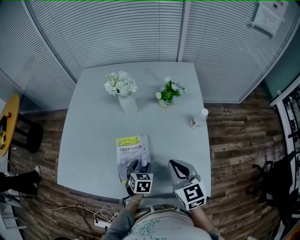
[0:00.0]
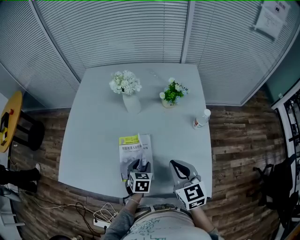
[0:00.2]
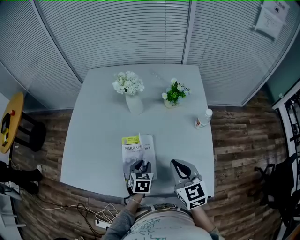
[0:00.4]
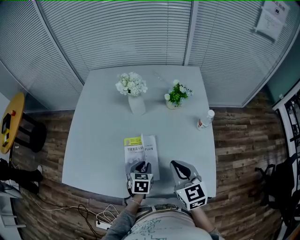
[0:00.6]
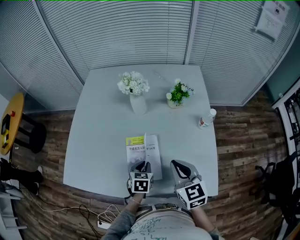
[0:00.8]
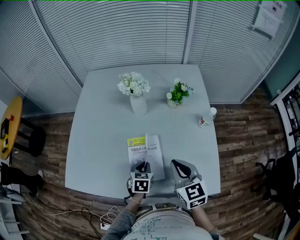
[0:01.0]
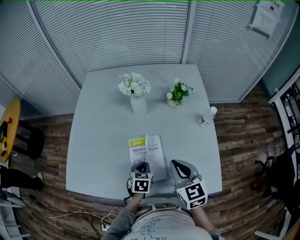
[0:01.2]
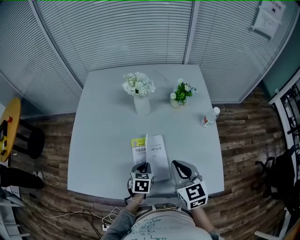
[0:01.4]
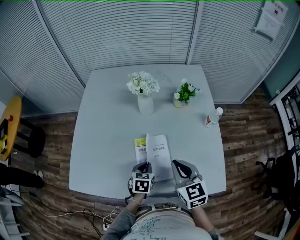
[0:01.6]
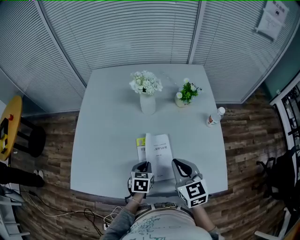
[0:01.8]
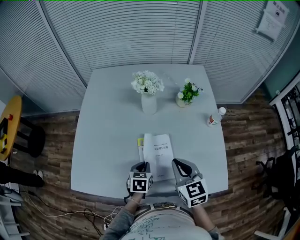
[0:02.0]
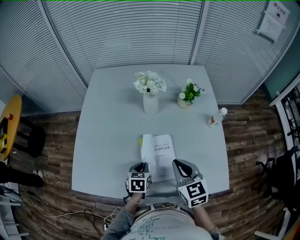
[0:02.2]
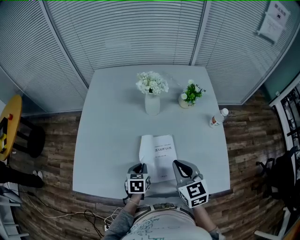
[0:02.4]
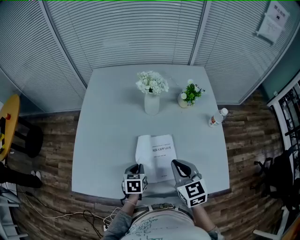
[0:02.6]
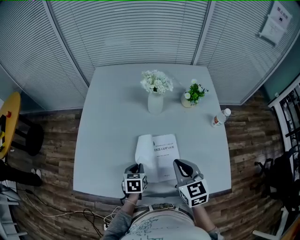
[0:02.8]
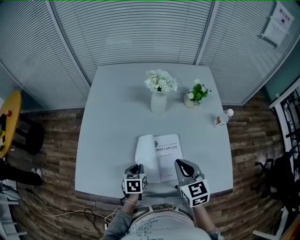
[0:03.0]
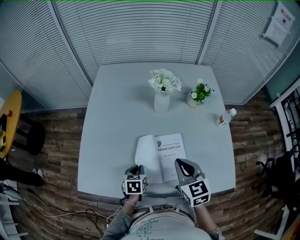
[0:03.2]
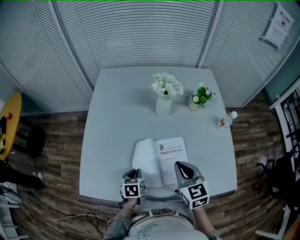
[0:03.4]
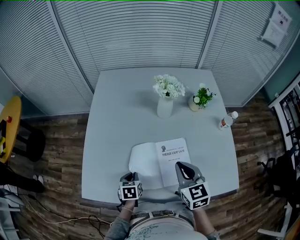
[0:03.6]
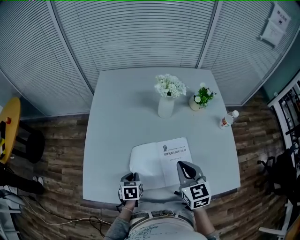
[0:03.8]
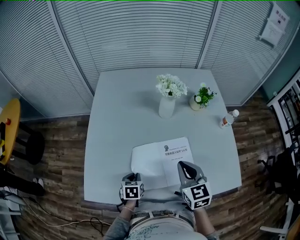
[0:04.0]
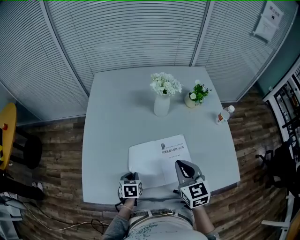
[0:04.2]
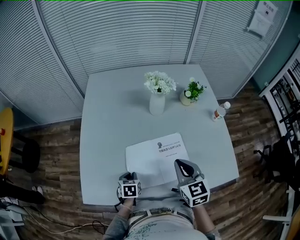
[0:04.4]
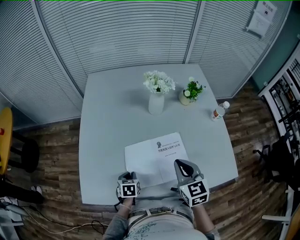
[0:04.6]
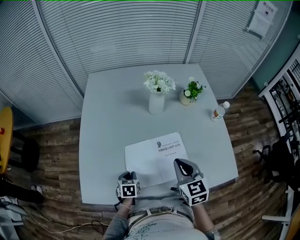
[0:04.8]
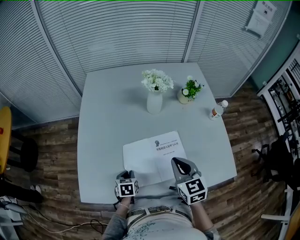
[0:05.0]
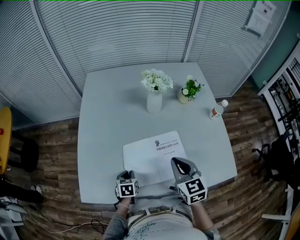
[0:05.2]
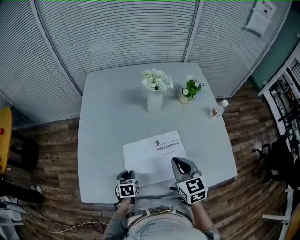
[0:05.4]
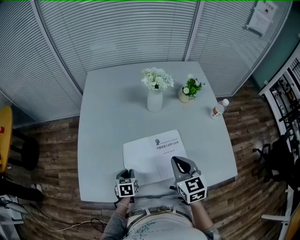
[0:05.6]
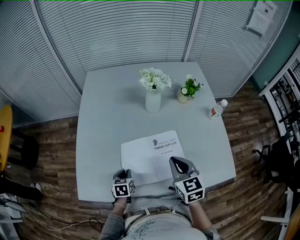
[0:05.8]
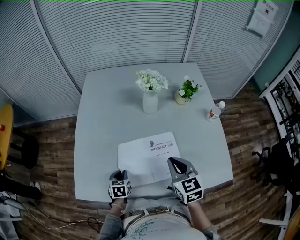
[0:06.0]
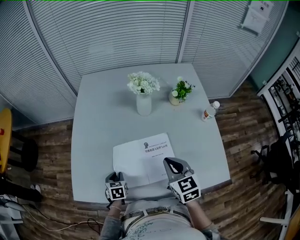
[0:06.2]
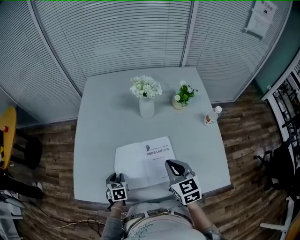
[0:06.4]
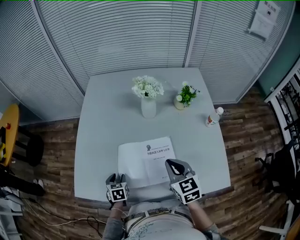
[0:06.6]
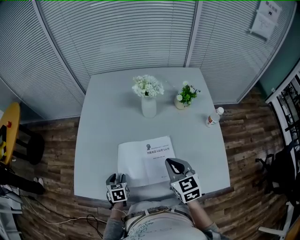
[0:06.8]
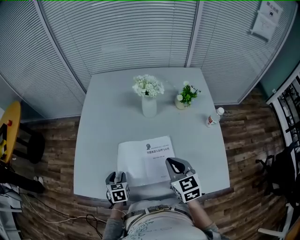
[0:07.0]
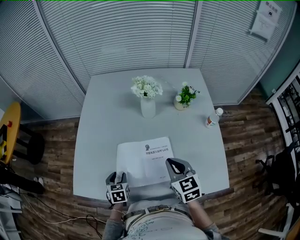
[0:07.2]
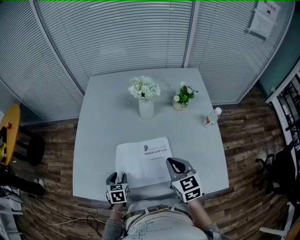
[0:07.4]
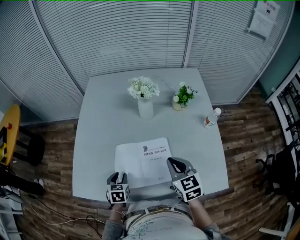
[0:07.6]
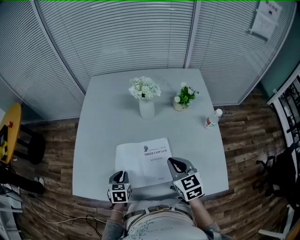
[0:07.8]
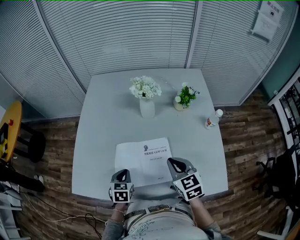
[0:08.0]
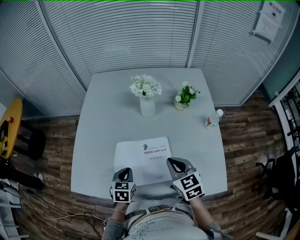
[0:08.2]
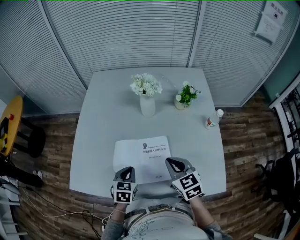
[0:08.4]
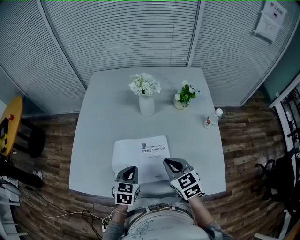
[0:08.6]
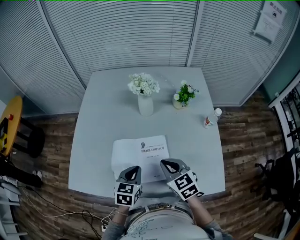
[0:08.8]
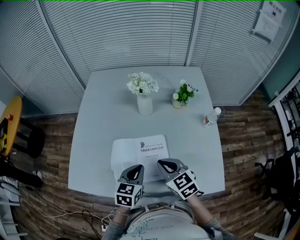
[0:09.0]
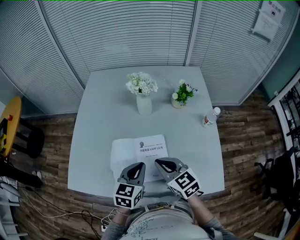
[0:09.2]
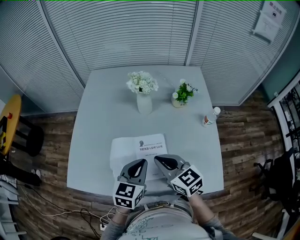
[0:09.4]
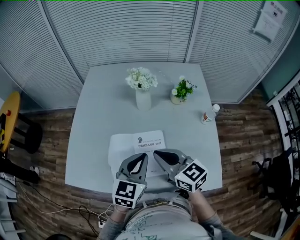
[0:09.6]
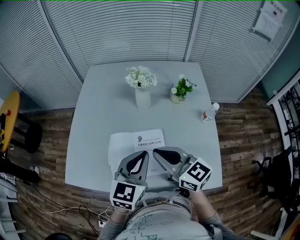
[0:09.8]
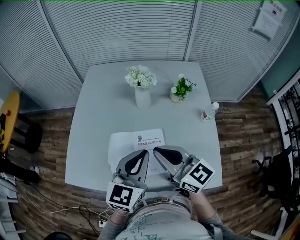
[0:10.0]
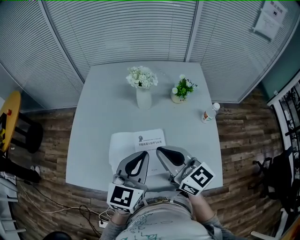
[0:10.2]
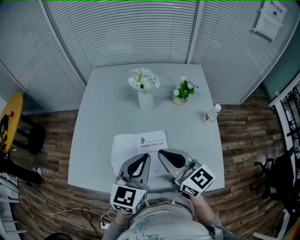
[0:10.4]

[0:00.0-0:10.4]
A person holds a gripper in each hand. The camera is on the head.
0:00.0 to 0:01.4: The two grippers go about 10 cm to the left. The left gripper closes up.
0:01.4 to 0:03.0: The left gripper goes about 15 cm to the left. Meanwhile the right gripper goes approximately 10 cm to the left.
0:03.0 to 0:04.4: The left gripper is displaced to the left and downward by approximately 10 cm.
0:04.4 to 0:06.0: The grippers make only small movements.
0:06.0 to 0:07.4: The left gripper travels upward by about 5 cm, and opens up. Meanwhile the right gripper goes approximately 5 cm to the right.
0:07.4 to 0:09.0: The left gripper goes some 20 cm to the right and upward, changes its angle by approximately 20 degrees, and closes.
0:09.0 to 0:10.4: The grippers both shift upward by some 15 cm. The right gripper points its fingers roughly 30 degrees further upward, while the left gripper rotates about 20 degrees.

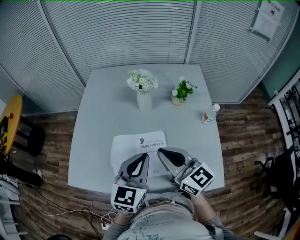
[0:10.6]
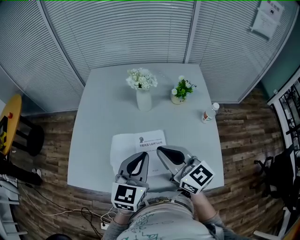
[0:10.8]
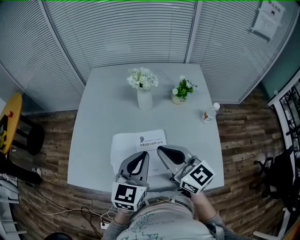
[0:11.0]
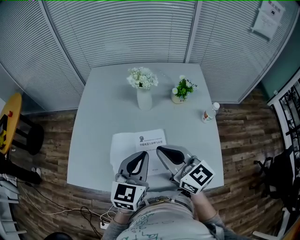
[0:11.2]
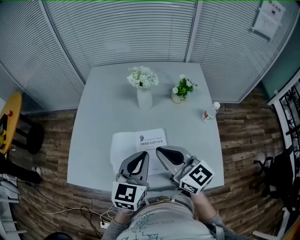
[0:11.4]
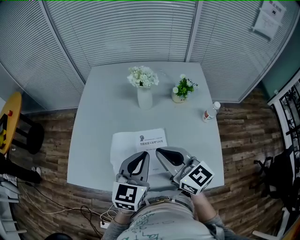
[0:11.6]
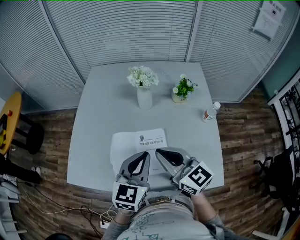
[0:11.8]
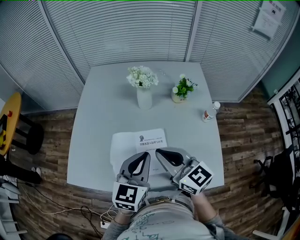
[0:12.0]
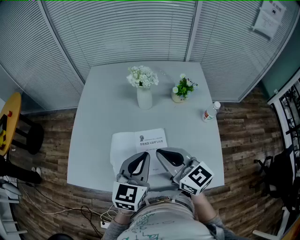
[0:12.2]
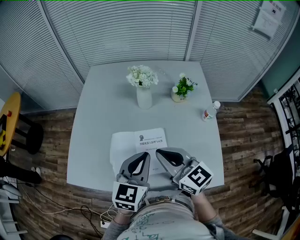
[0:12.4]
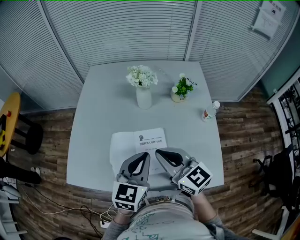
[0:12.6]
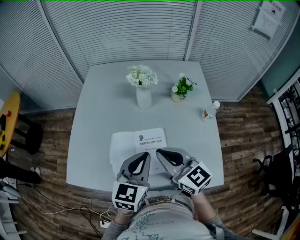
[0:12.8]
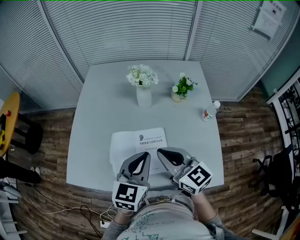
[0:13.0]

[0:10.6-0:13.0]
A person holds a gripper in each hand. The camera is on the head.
0:10.6 to 0:13.0: There are only small adjustments of the grippers.

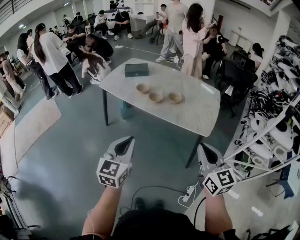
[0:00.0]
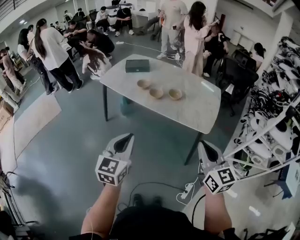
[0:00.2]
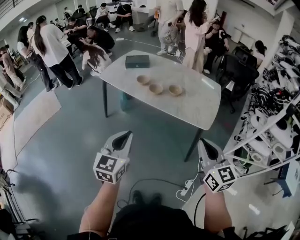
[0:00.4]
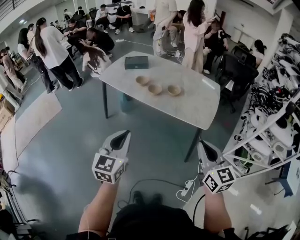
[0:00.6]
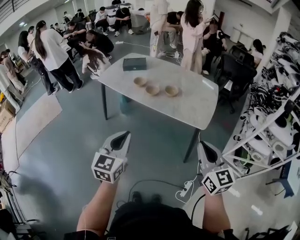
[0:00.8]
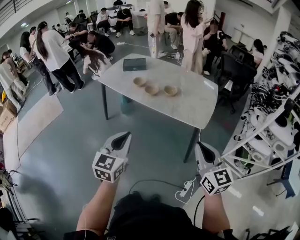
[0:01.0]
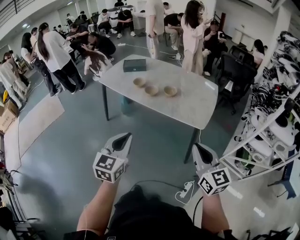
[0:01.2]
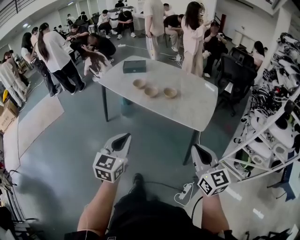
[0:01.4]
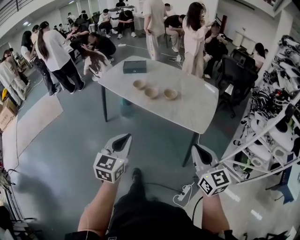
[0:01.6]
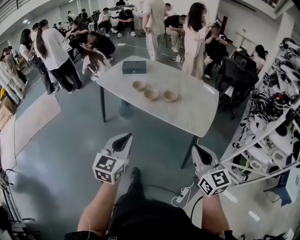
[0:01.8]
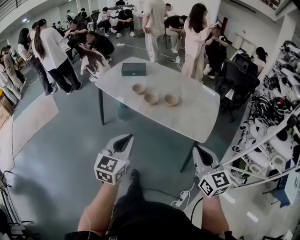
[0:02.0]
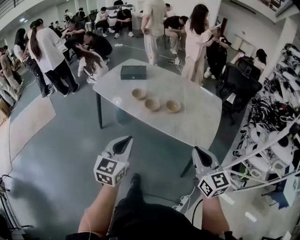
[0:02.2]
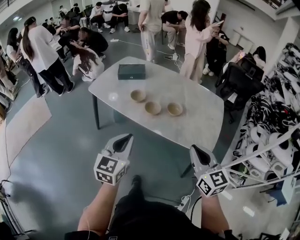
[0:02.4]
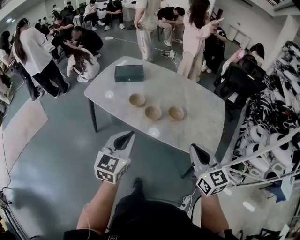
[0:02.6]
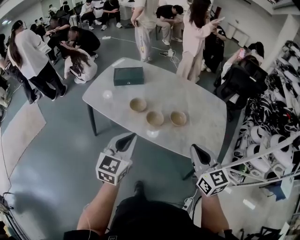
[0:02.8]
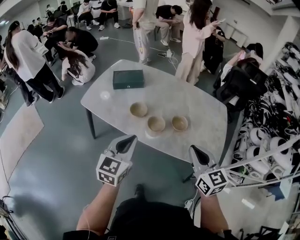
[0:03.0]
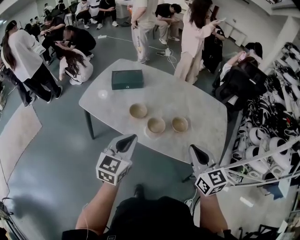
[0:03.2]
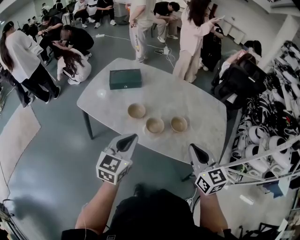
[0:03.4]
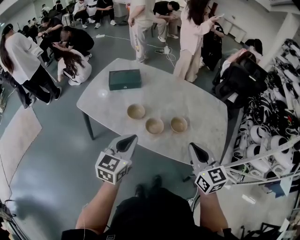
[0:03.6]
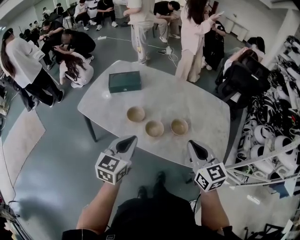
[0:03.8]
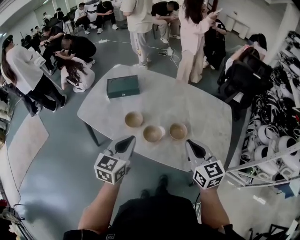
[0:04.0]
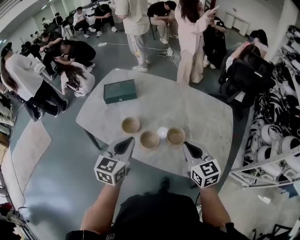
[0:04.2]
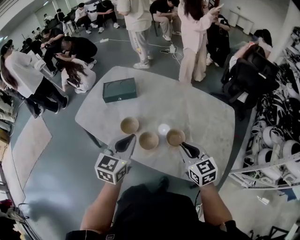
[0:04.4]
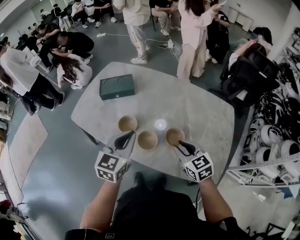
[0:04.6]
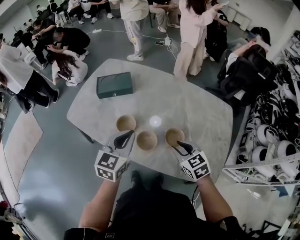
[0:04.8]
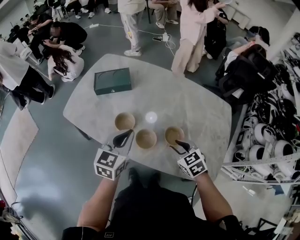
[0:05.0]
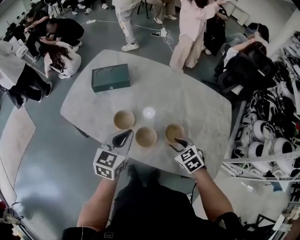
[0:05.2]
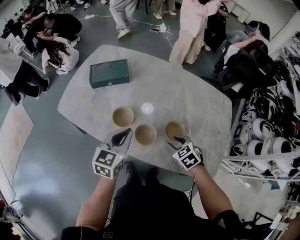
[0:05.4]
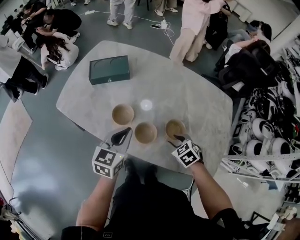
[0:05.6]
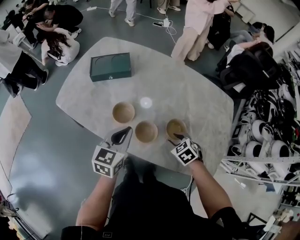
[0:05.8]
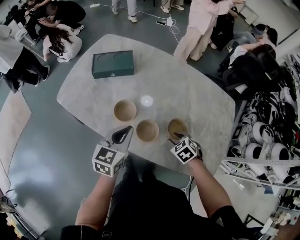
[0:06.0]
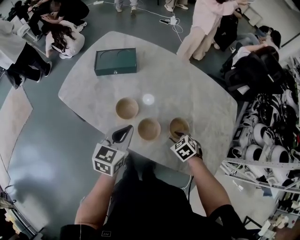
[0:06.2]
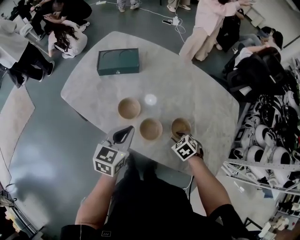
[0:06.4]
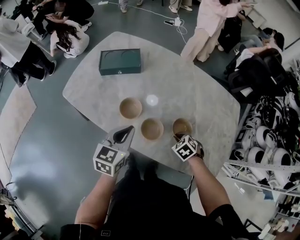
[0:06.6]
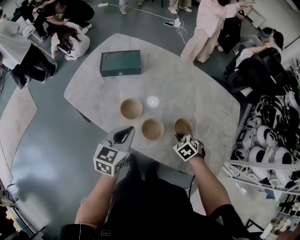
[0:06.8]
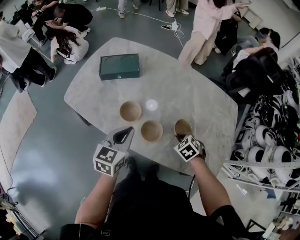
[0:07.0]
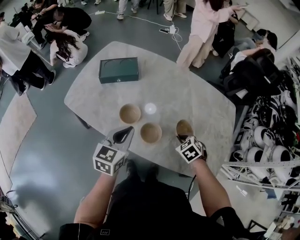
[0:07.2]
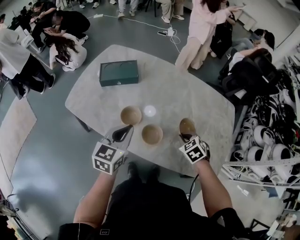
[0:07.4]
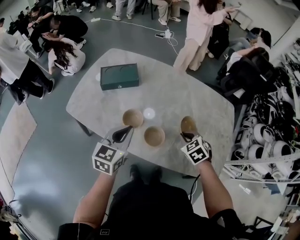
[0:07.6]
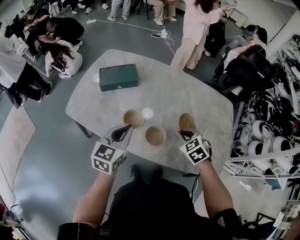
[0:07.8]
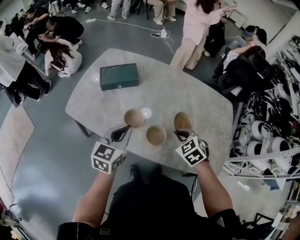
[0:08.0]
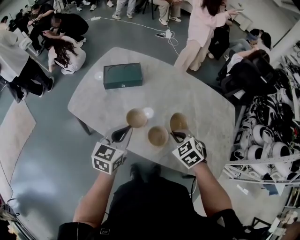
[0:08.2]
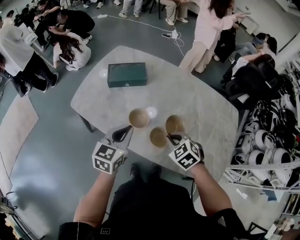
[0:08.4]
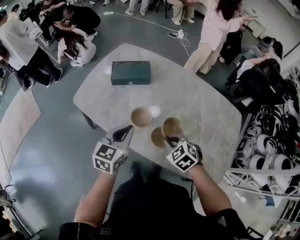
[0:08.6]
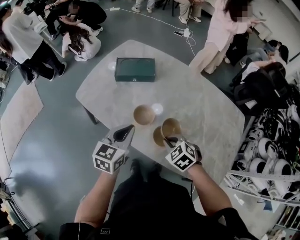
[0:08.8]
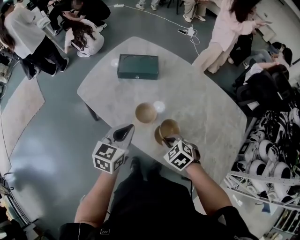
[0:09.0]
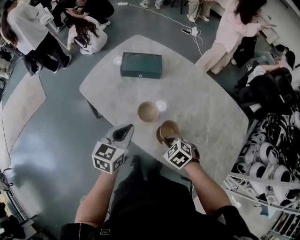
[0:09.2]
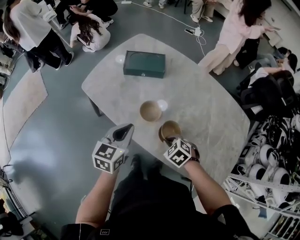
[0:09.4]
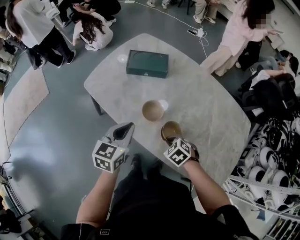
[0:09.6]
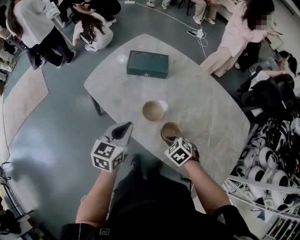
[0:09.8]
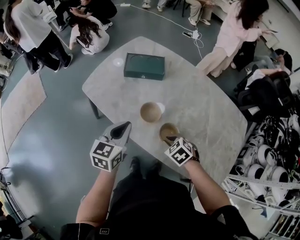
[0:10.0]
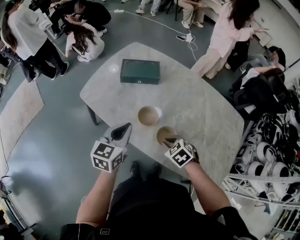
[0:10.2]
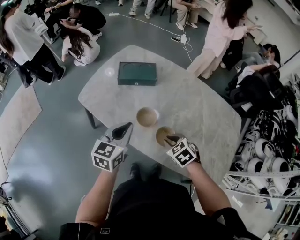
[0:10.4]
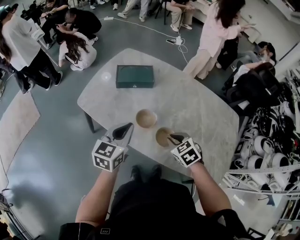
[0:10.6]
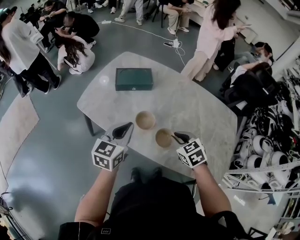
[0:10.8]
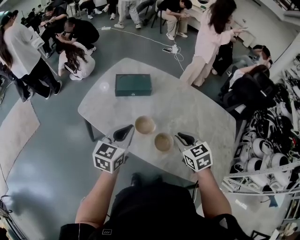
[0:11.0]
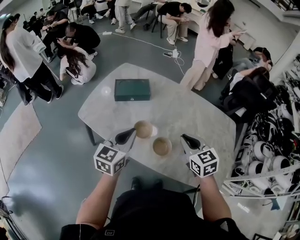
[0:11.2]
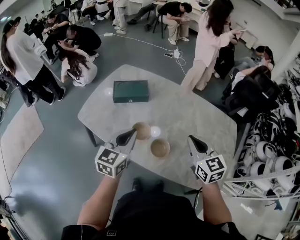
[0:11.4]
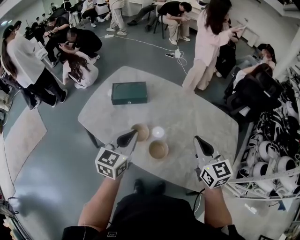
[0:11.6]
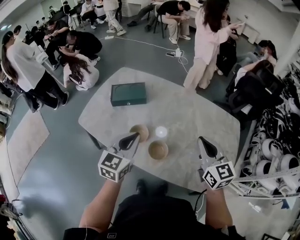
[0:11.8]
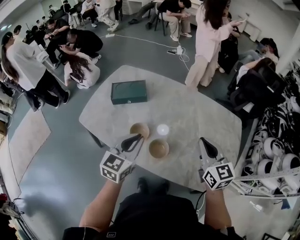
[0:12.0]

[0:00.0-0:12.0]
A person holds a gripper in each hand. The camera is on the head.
0:00.0 to 0:01.6: The right gripper moves roughly 5 cm; the left gripper is displaced to the right by some 5 cm.
0:01.6 to 0:03.0: Both grippers are carried forward, approximately 40 cm.
0:03.0 to 0:04.4: The right gripper is displaced forward and downward by about 20 cm; the left gripper is displaced forward and to the right by approximately 20 cm.
0:04.4 to 0:06.0: The right gripper heads downward, covering approximately 20 cm, tilts its fingers some 40 degrees downward, and opens. Meanwhile the left gripper is displaced downward and forward by roughly 15 cm.
0:06.0 to 0:07.6: The left gripper travels upward by about 5 cm, while the right gripper goes roughly 10 cm upward, and closes up.
0:07.6 to 0:09.0: The left gripper changes place by approximately 5 cm. Meanwhile the right gripper heads to the left, covering roughly 15 cm, and changes its angle by roughly 30 degrees.
0:09.0 to 0:10.4: The grippers make only small movements.
0:10.4 to 0:12.0: The left gripper travels to the right and upward by approximately 15 cm, while the right gripper is displaced upward and to the right by about 25 cm, and angles its fingers upward, by some 50 degrees.
